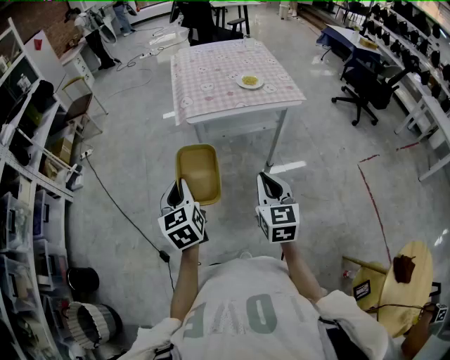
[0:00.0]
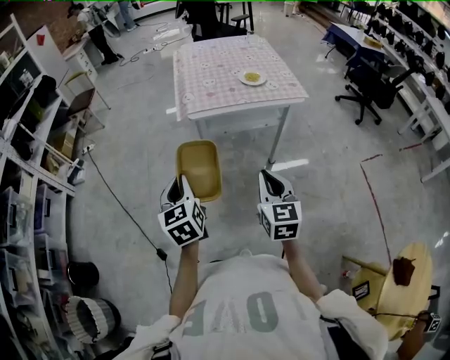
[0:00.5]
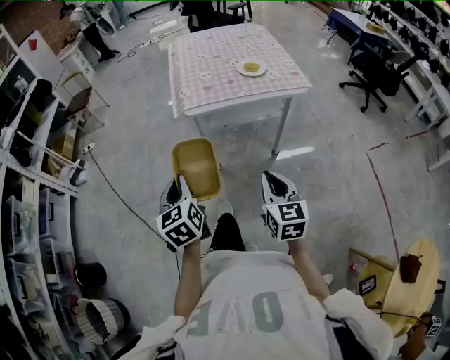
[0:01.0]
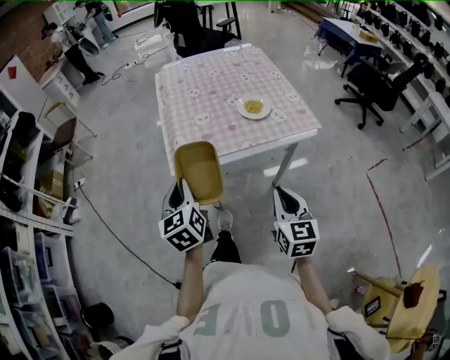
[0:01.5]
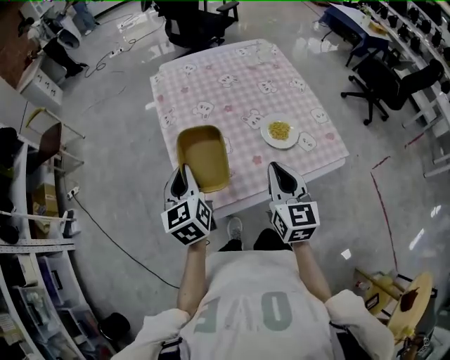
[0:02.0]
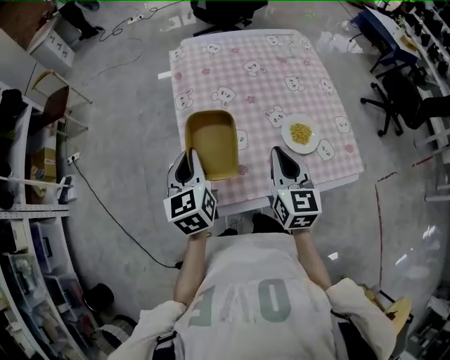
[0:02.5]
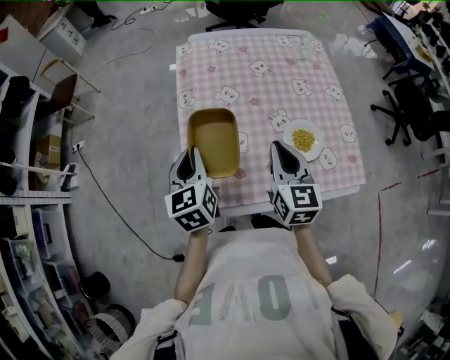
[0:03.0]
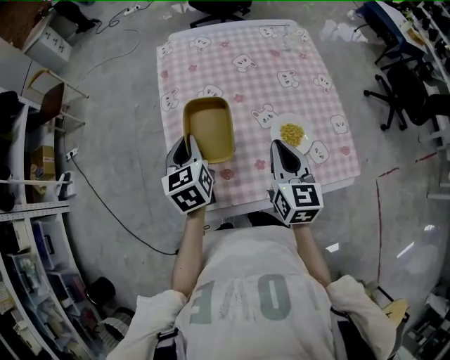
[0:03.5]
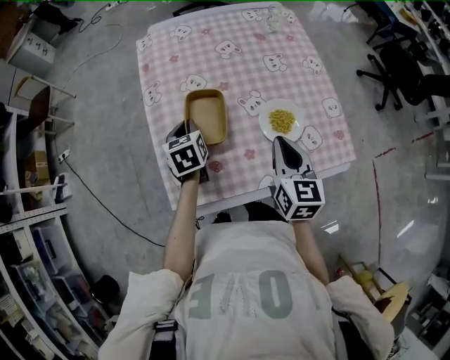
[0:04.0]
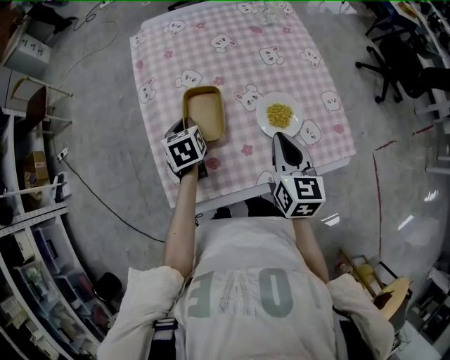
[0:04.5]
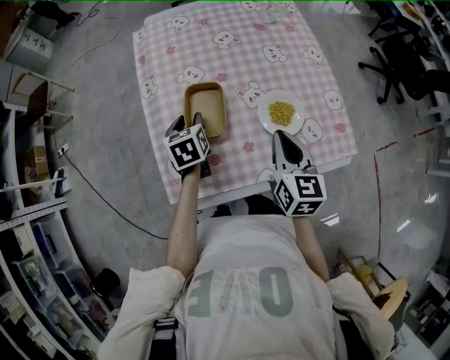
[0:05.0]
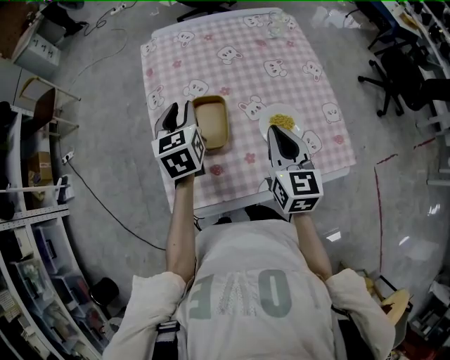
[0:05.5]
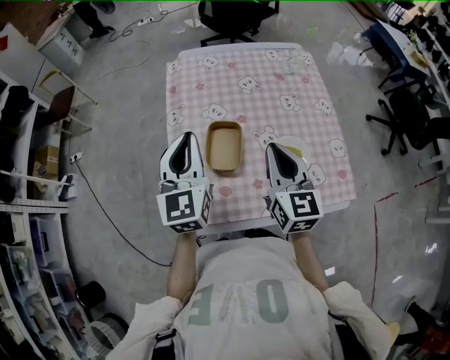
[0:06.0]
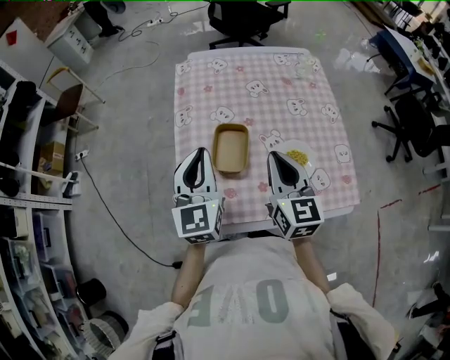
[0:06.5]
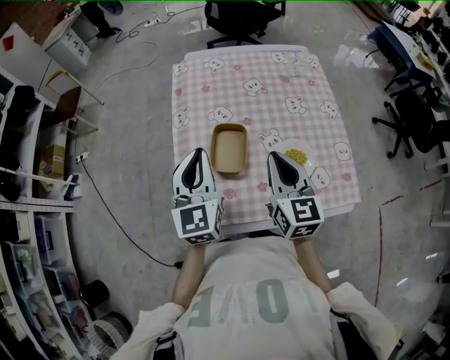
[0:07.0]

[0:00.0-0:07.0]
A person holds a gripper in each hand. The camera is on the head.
0:00.0 to 0:02.0: Both grippers are carried forward, some 50 cm.
0:02.0 to 0:03.5: The two grippers go approximately 10 cm forward.
0:03.5 to 0:05.0: The right gripper moves approximately 5 cm, while the left gripper is displaced downward by approximately 10 cm, and opens.
0:05.0 to 0:07.0: The right gripper shifts about 10 cm upward and to the left, while the left gripper moves upward, about 20 cm, tips its fingers upward by approximately 40 degrees, and closes its fingers.

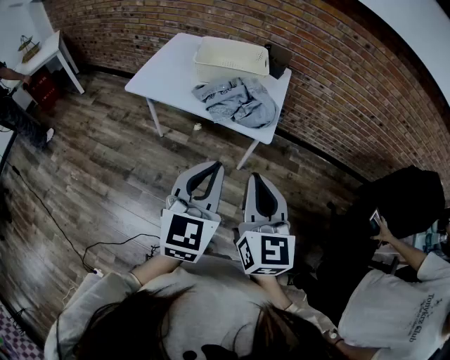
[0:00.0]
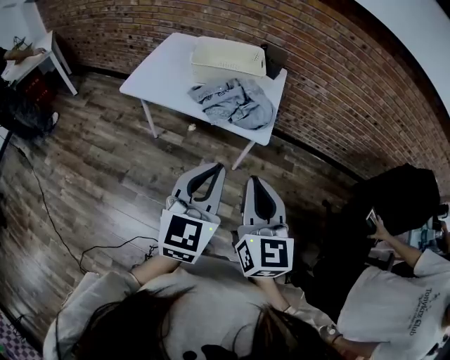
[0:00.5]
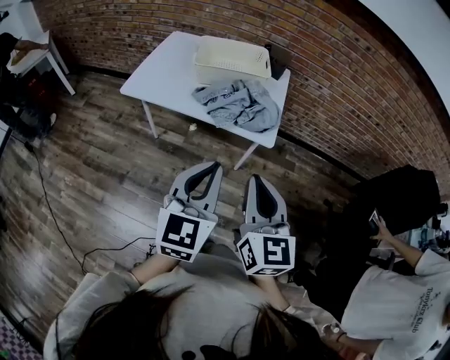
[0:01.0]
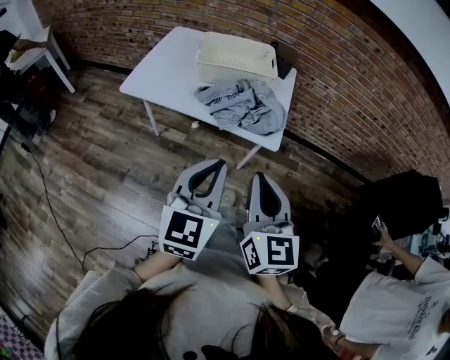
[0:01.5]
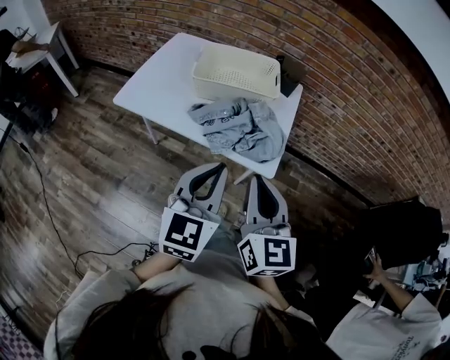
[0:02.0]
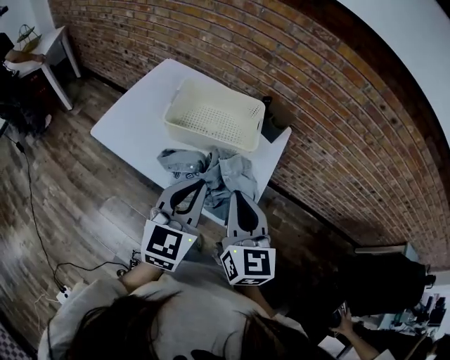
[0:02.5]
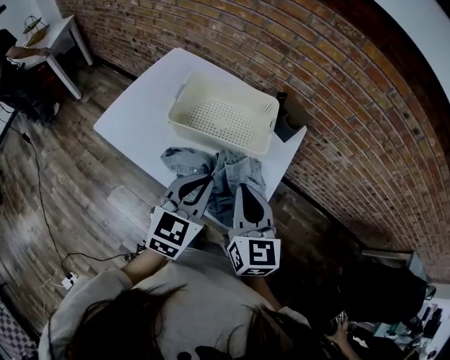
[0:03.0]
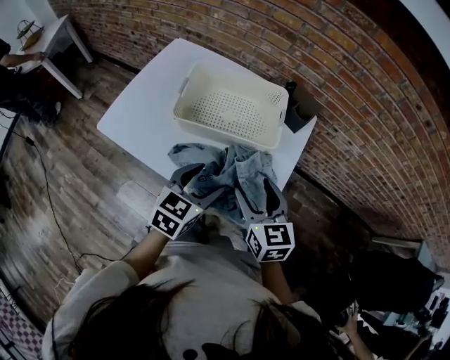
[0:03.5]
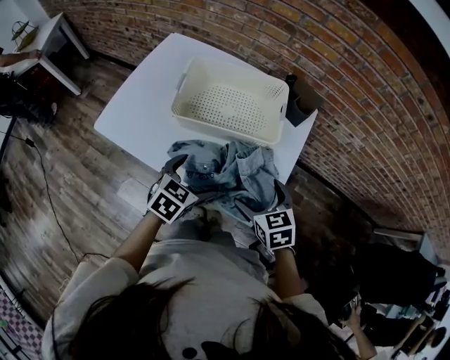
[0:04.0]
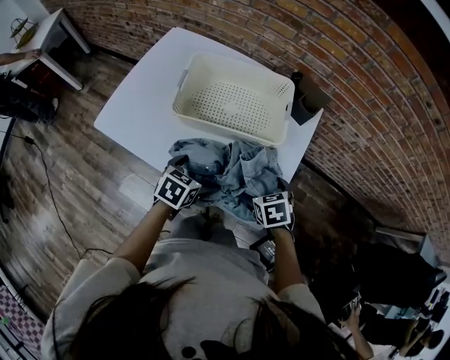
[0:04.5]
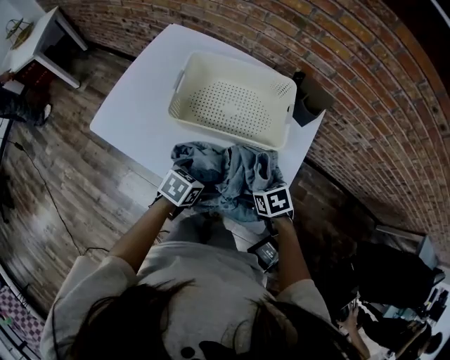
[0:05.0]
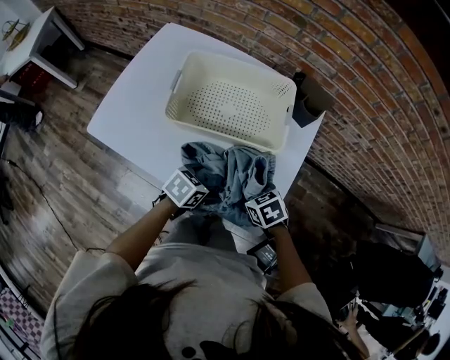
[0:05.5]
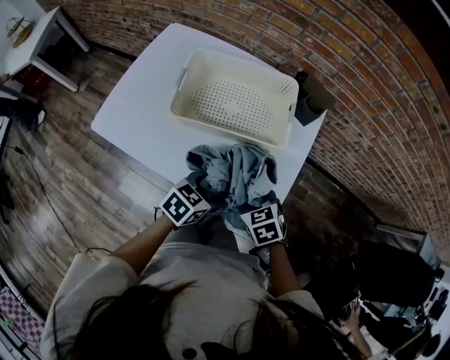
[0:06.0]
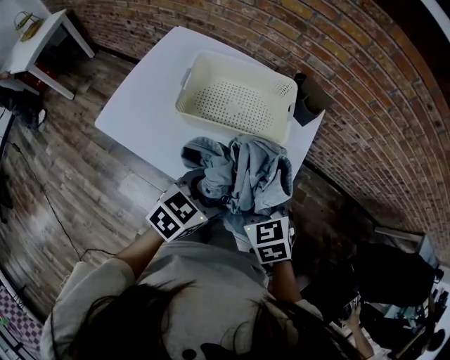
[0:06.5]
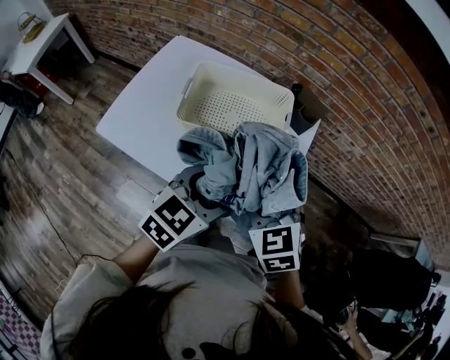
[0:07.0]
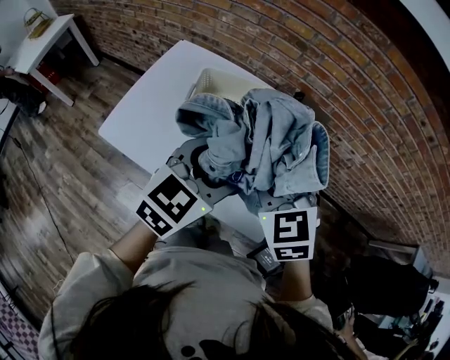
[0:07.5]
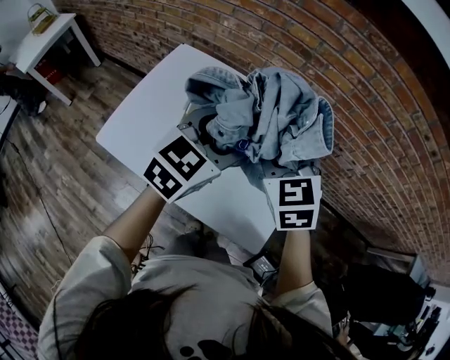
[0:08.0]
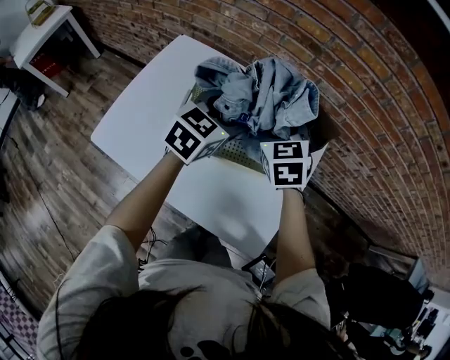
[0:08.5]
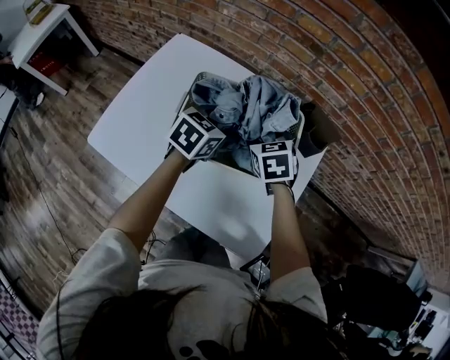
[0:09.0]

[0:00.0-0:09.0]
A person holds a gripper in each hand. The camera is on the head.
0:00.0 to 0:02.0: Both grippers travel together forward, about 15 cm.
0:02.0 to 0:04.5: Both grippers move downward and forward, approximately 35 cm. The right gripper tips its fingers downward by about 60 degrees, and opens its fingers, while the left gripper points its fingers about 40 degrees further downward, and opens.
0:04.5 to 0:07.0: Both grippers travel together upward, about 20 cm. The left gripper swivels some 30 degrees, and closes up. Meanwhile the right gripper changes its angle by about 30 degrees, and closes its fingers.
0:07.0 to 0:09.0: The two grippers go roughly 25 cm forward and downward.

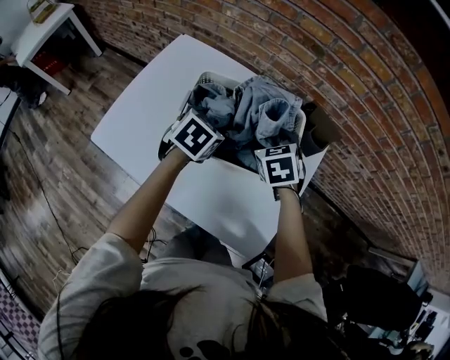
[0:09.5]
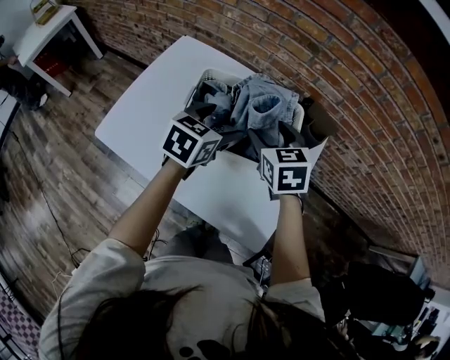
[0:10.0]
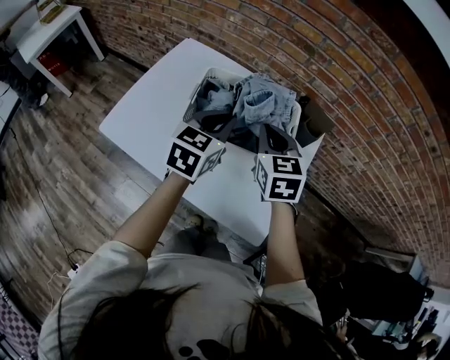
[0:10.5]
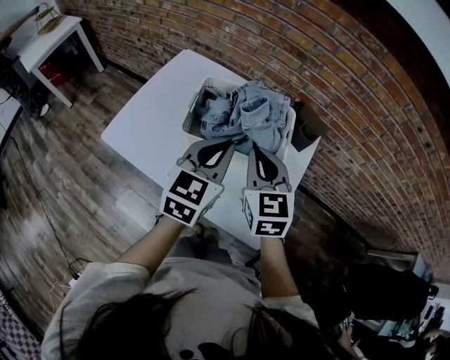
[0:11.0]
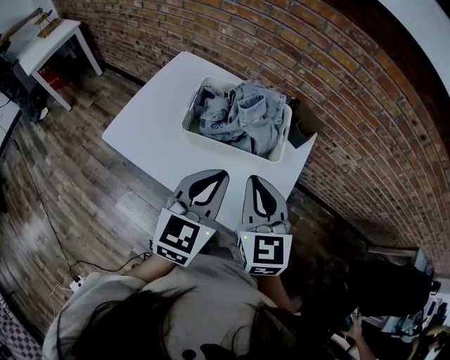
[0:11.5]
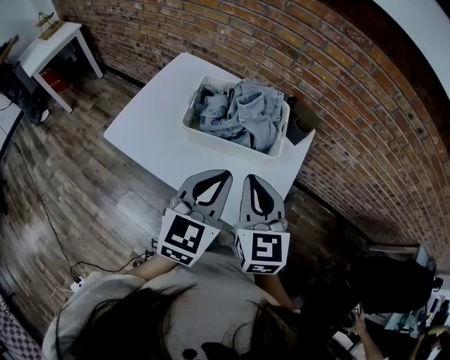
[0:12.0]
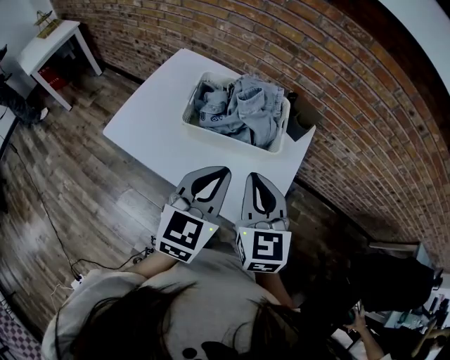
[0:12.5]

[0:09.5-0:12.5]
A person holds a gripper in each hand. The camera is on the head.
0:09.5 to 0:11.0: The grippers both shift upward and backward by roughly 20 cm. The left gripper tips its fingers upward by roughly 40 degrees, and closes its fingers, while the right gripper tilts its fingers approximately 30 degrees upward, and closes its fingers.
0:11.0 to 0:12.5: Both grippers move backward, roughly 10 cm.

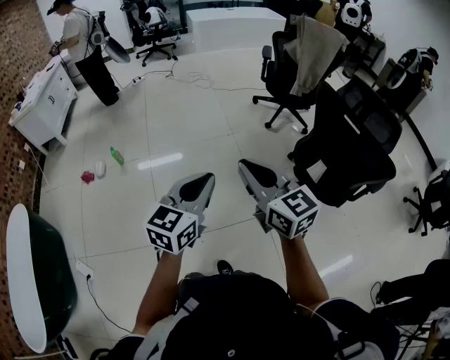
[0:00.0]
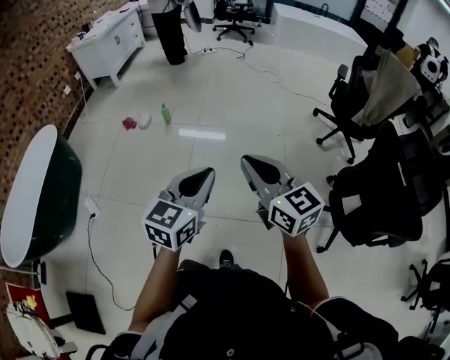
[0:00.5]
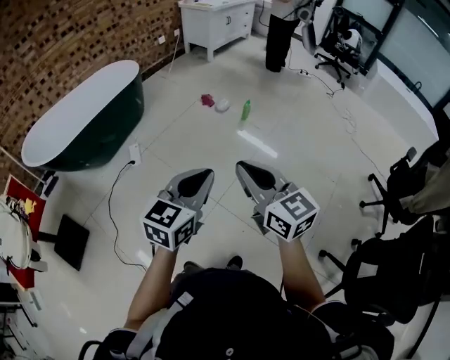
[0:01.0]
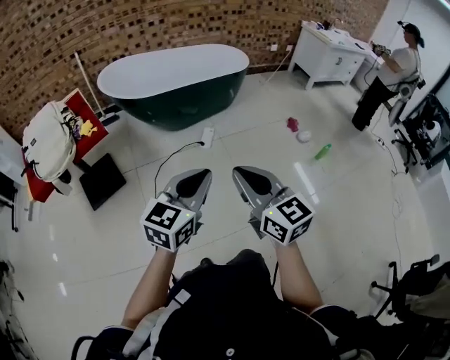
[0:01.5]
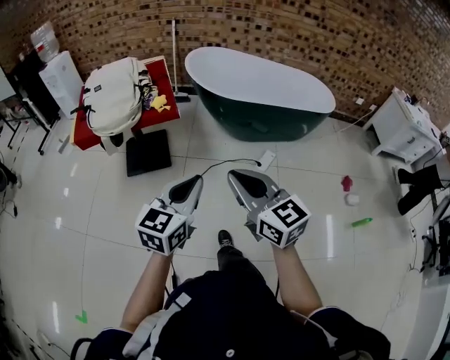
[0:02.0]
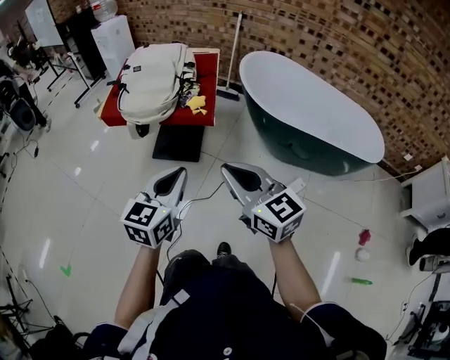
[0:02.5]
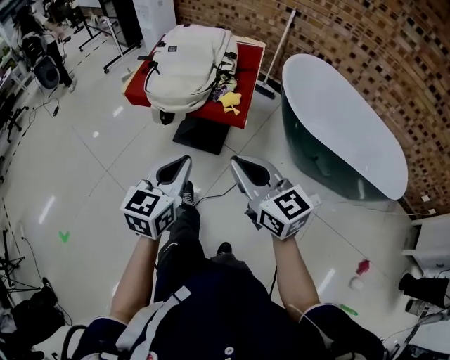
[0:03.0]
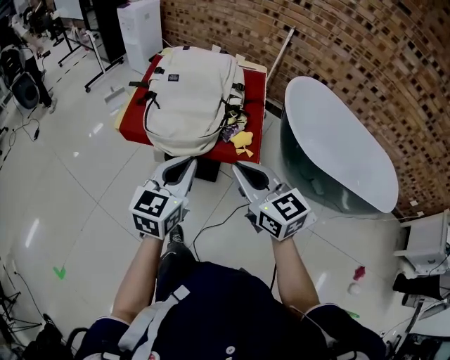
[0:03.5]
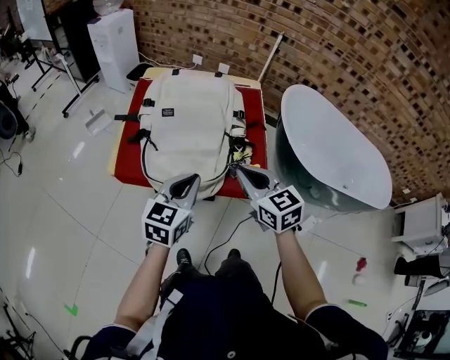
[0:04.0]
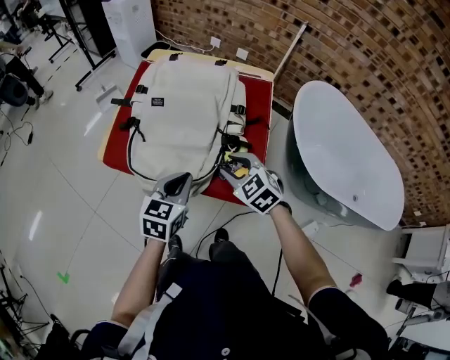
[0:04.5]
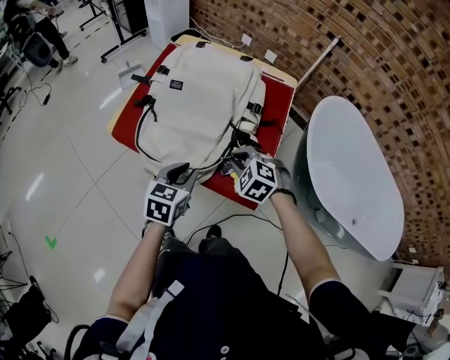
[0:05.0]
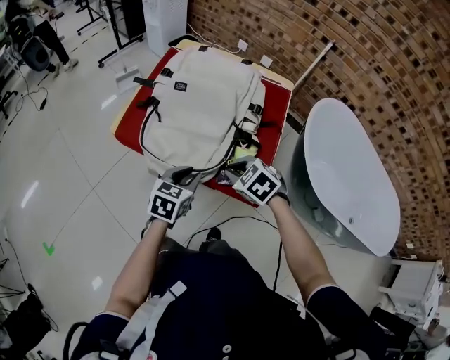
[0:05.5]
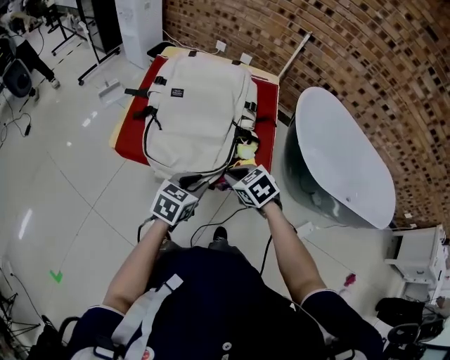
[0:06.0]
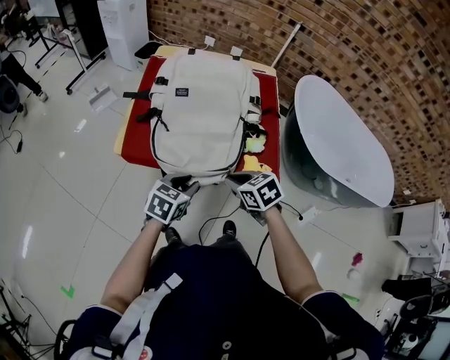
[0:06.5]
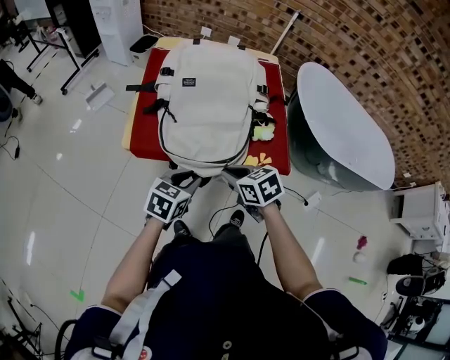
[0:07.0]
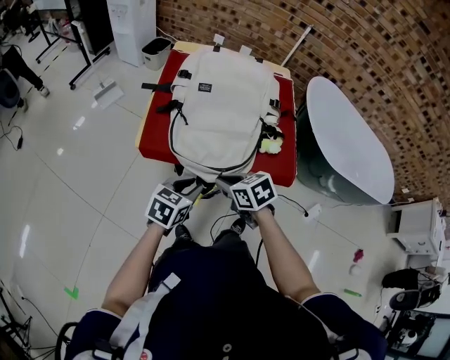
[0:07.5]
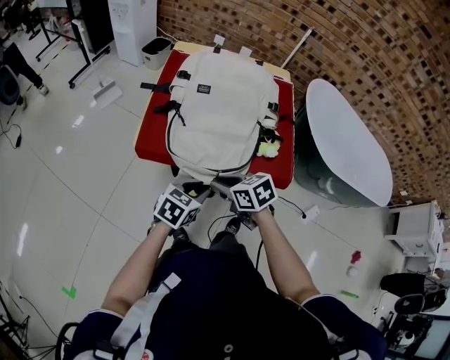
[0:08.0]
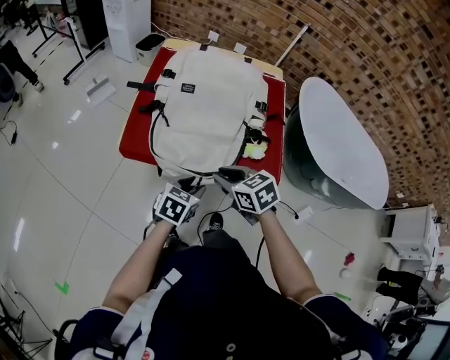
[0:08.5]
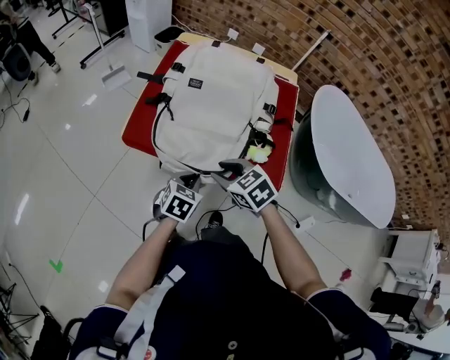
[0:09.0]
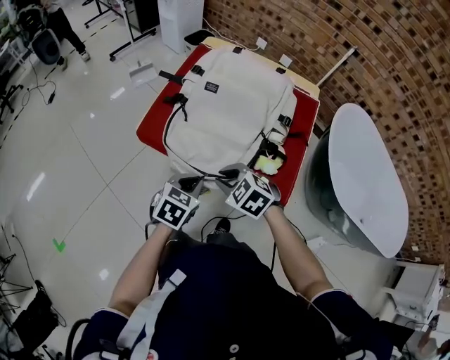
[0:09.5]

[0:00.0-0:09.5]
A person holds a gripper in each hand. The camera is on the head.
0:00.0 to 0:02.0: The two grippers travel together, roughly 80 cm. The right gripper turns by roughly 110 degrees. The left gripper swivels roughly 110 degrees.
0:02.0 to 0:04.0: The pair of grippers is taken about 50 cm. The right gripper changes its angle by some 20 degrees. Meanwhile the left gripper rotates some 20 degrees.
0:04.0 to 0:05.5: The two grippers go some 15 cm downward. The left gripper swivels about 20 degrees, and opens up. Meanwhile the right gripper angles its fingers downward, by roughly 30 degrees, and opens, then closes once more.
0:05.5 to 0:07.5: Both grippers travel together to the left, approximately 15 cm. The right gripper rotates around the line of its fingers by some 40 degrees, clockwise from behind; the left gripper swivels some 20 degrees.
0:07.5 to 0:09.5: The left gripper heads to the right, covering some 5 cm, turns by about 20 degrees, and closes its fingers; the right gripper twists some 50 degrees counterclockwise, seen from behind.
